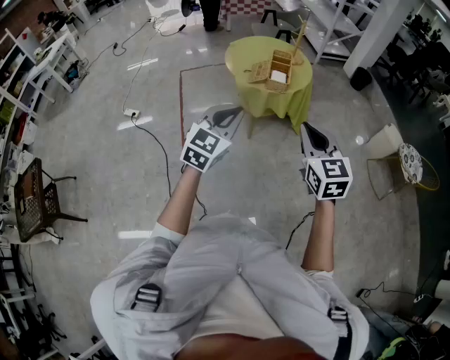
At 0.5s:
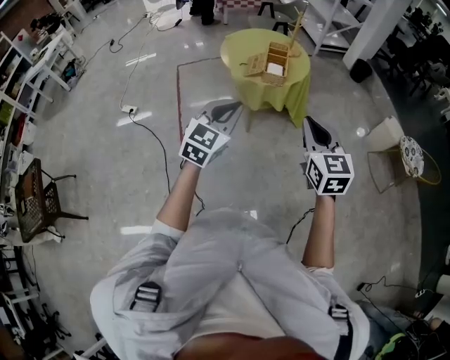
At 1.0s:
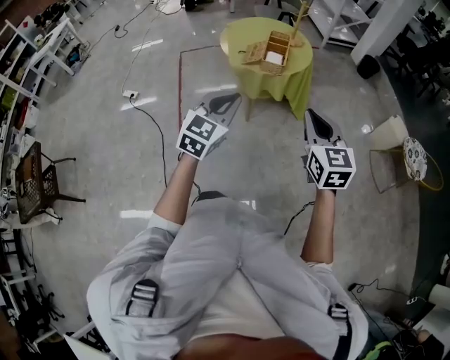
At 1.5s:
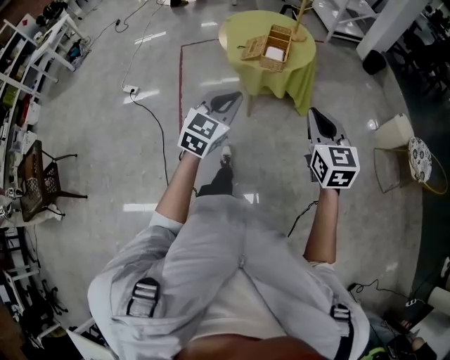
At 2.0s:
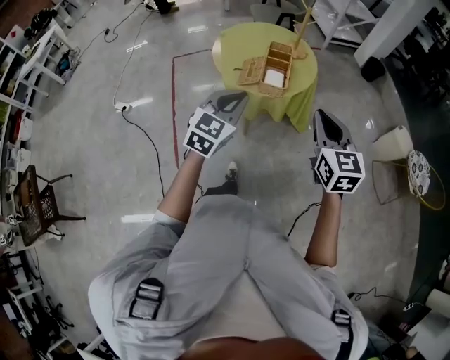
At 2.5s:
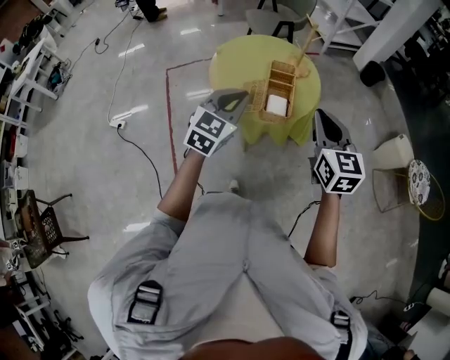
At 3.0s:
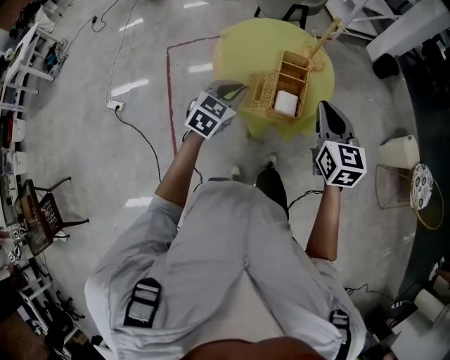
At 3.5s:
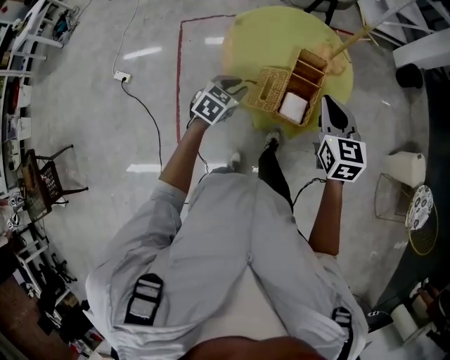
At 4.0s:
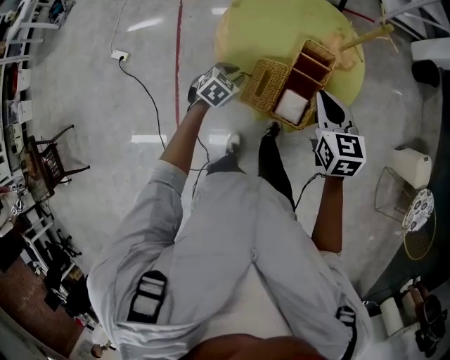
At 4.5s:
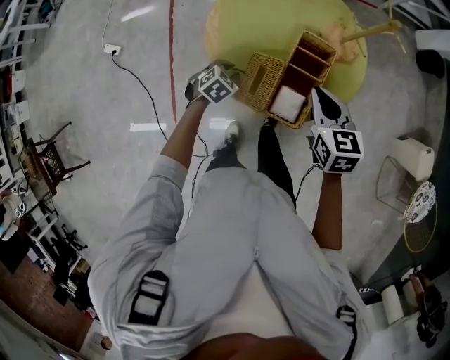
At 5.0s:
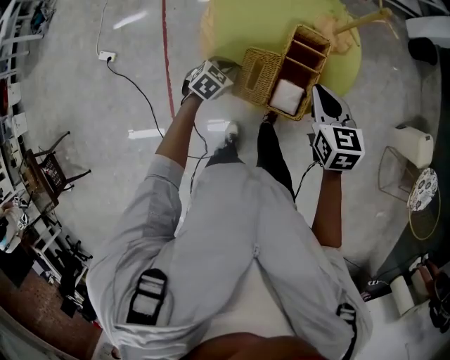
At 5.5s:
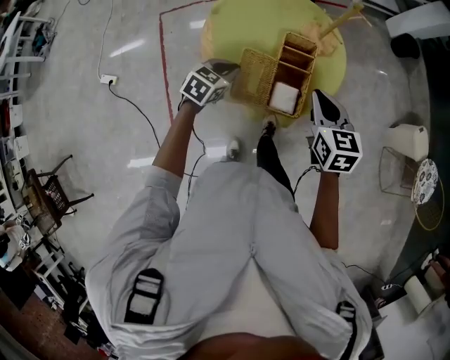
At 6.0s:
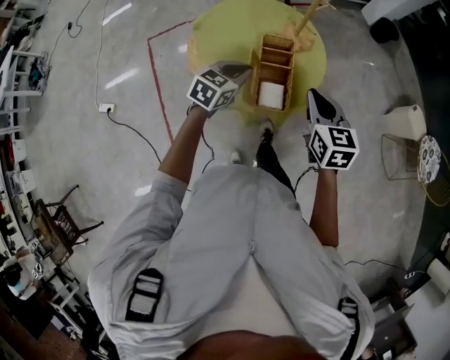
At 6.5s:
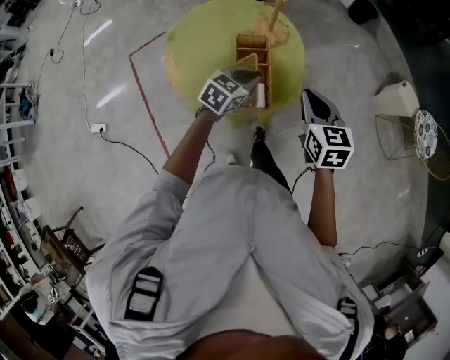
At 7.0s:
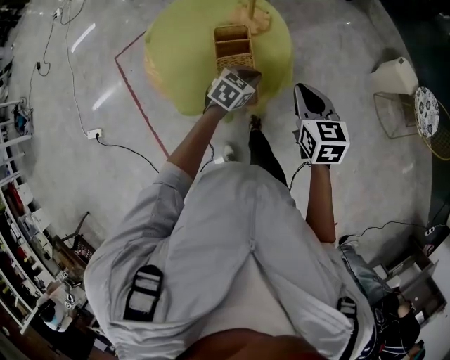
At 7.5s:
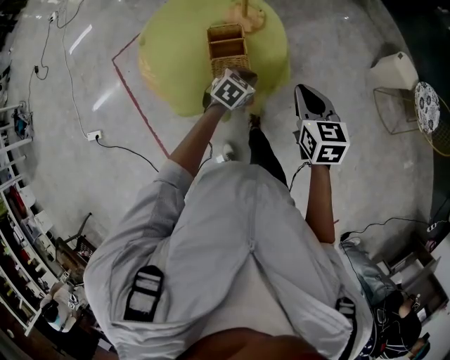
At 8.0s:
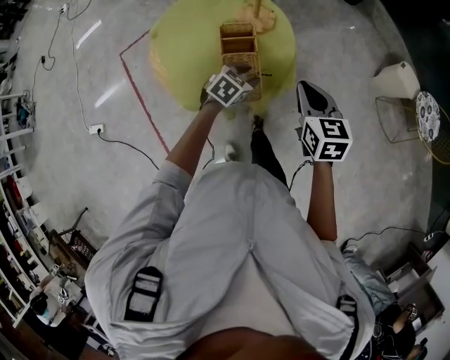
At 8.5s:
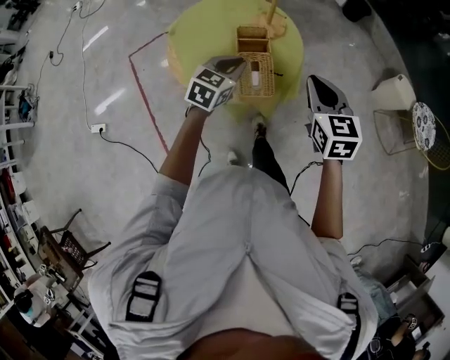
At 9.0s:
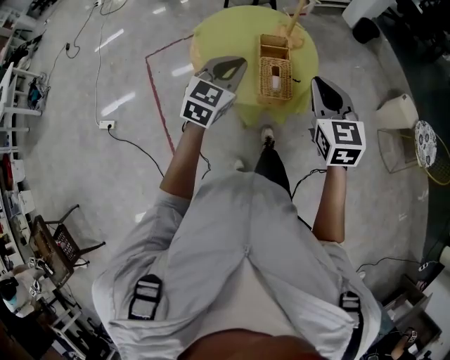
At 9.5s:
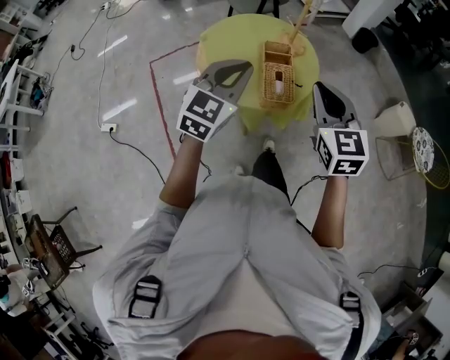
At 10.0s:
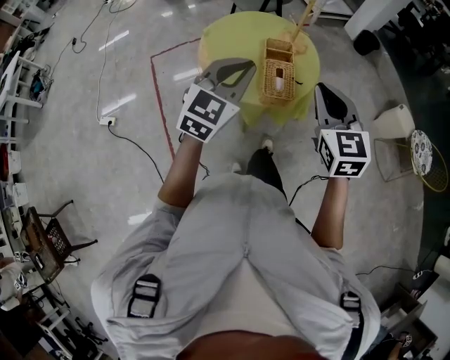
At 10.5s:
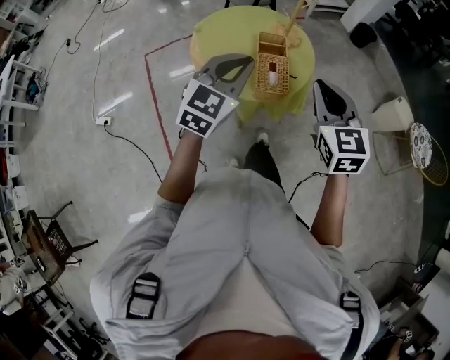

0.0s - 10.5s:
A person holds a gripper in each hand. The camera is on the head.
0.0s - 2.0s: The grippers both shift forward by approximately 25 cm.
2.0s - 4.0s: The two grippers go roughly 50 cm forward and downward. The left gripper points its fingers about 40 degrees further downward. The right gripper turns by about 20 degrees.
4.0s - 6.5s: The right gripper changes place by approximately 15 cm, and swivels some 20 degrees, while the left gripper ends up about 25 cm from where it was, and changes its angle by roughly 30 degrees.
6.5s - 8.5s: The right gripper ends up some 5 cm from where it was. The left gripper reaches roughly 10 cm downward, then returns, and opens and closes again.
8.5s - 10.5s: The left gripper heads upward and backward, covering about 20 cm, and swivels roughly 20 degrees. The right gripper goes about 15 cm backward, upward and to the left.

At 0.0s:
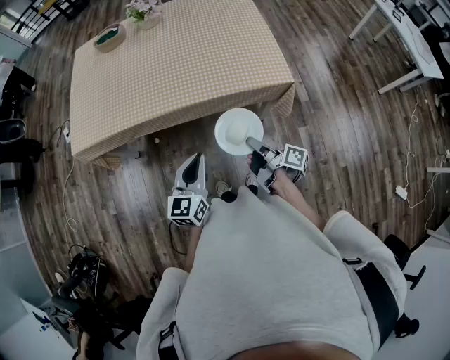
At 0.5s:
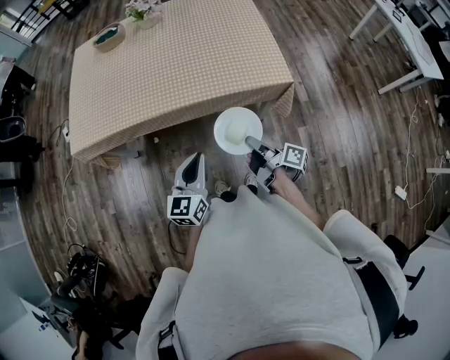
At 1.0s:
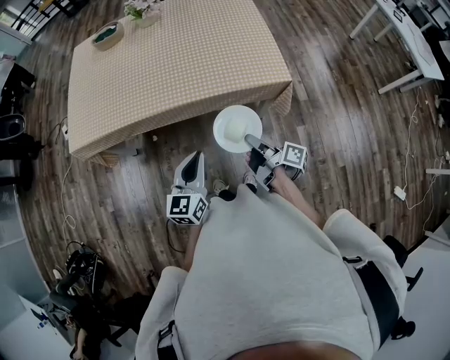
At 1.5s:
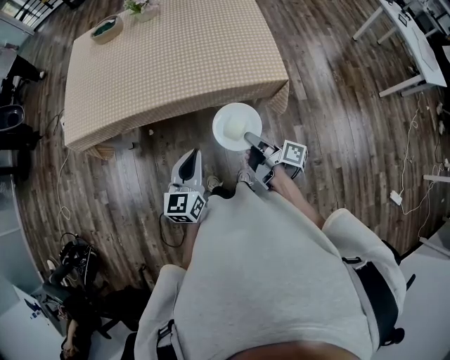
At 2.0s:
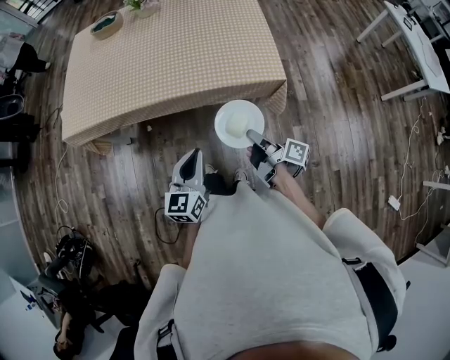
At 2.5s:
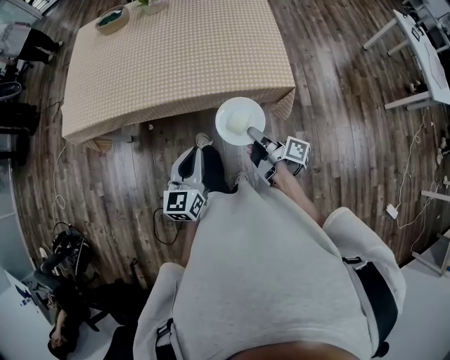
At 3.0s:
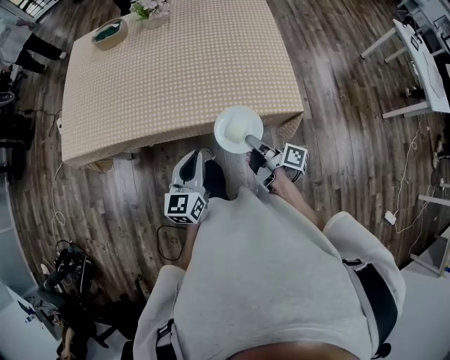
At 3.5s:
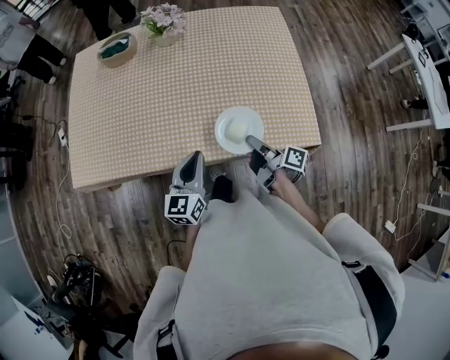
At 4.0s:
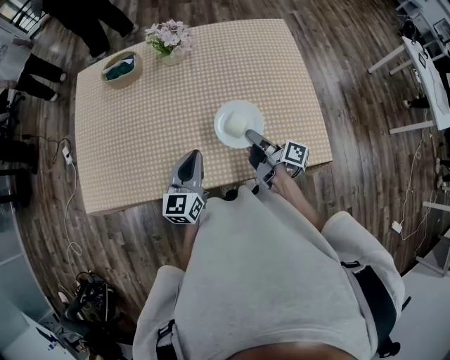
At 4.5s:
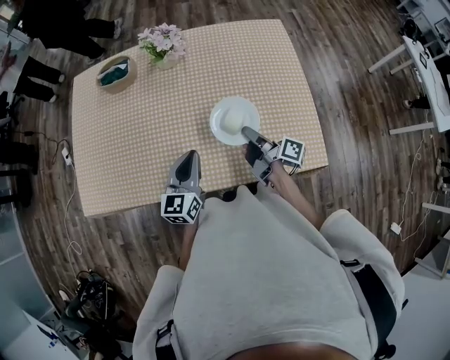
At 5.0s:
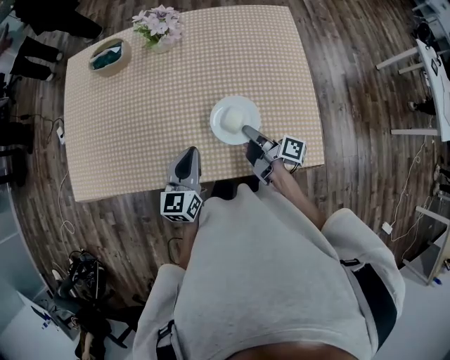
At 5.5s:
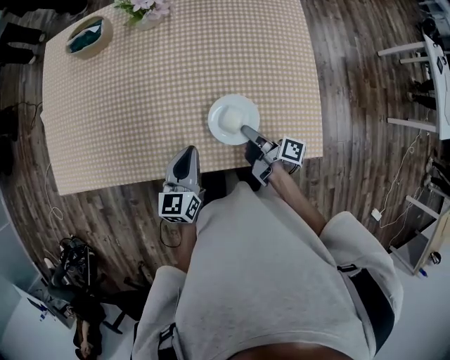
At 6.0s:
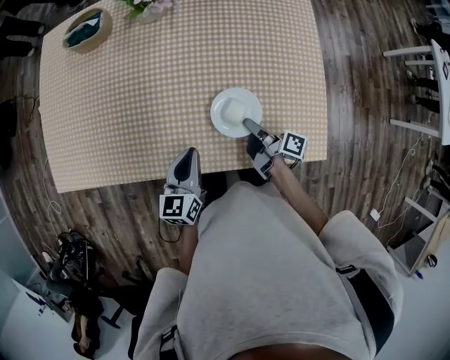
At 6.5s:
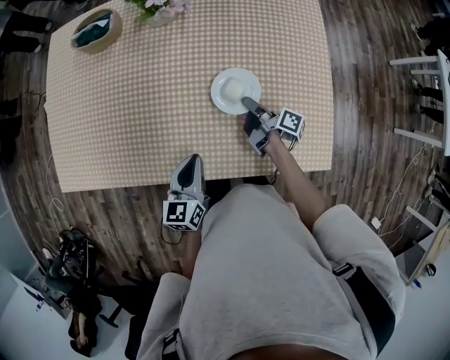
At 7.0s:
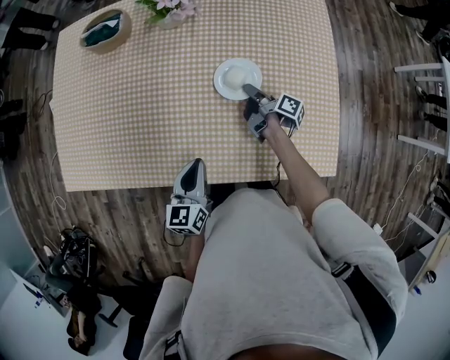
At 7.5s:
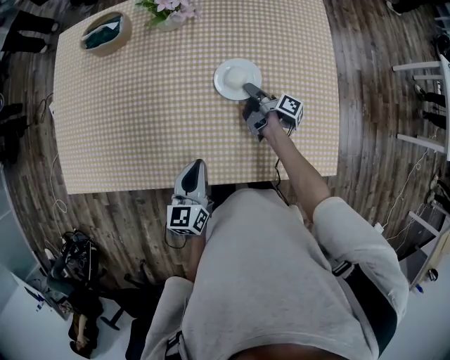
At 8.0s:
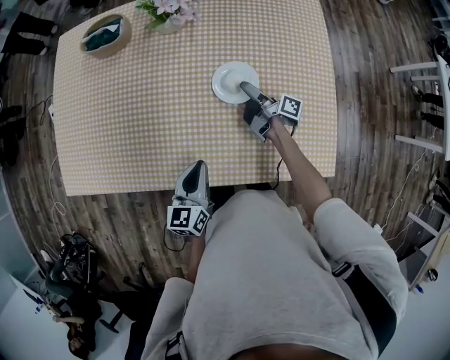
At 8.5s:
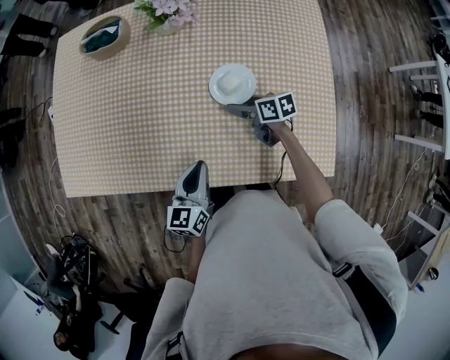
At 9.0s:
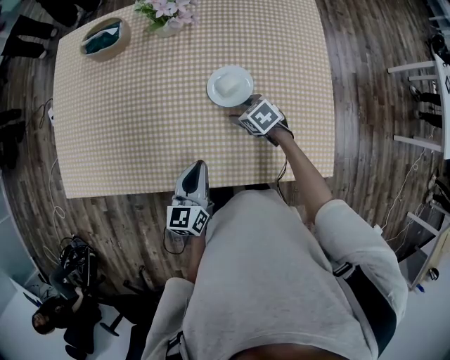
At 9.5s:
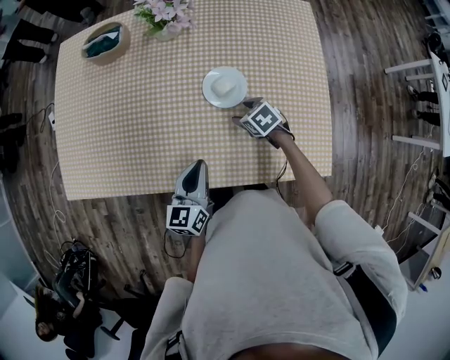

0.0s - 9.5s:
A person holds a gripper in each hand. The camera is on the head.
0.0s - 2.0s: The left gripper ends up roughly 5 cm from where it was.
2.0s - 4.0s: The left gripper ends up approximately 40 cm from where it was.
4.0s - 5.5s: The left gripper heads downward, covering approximately 10 cm.

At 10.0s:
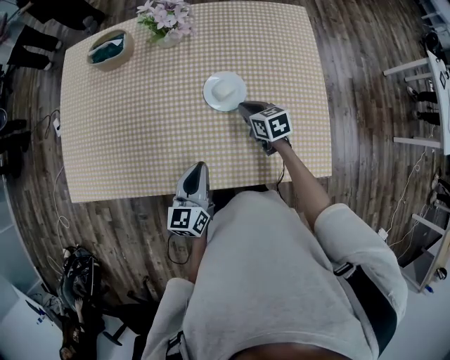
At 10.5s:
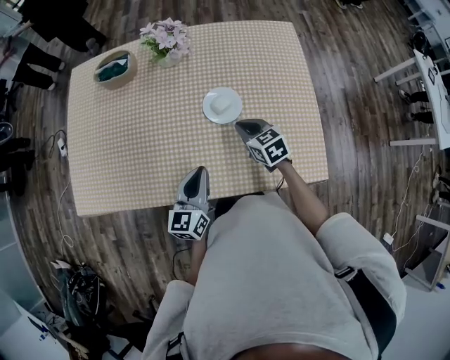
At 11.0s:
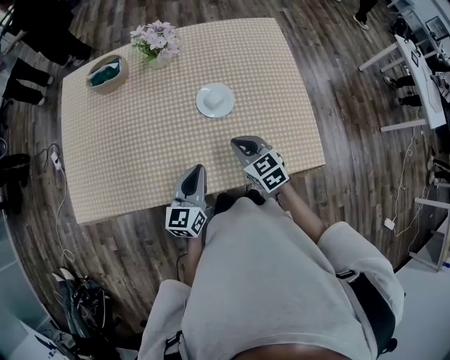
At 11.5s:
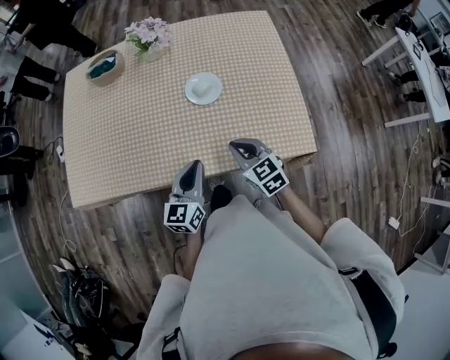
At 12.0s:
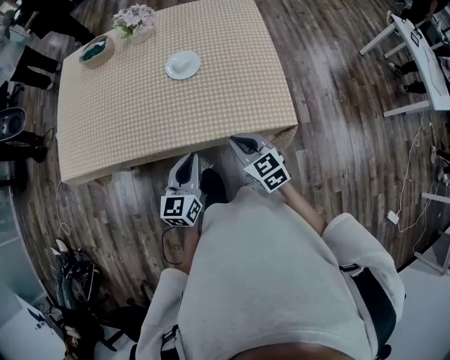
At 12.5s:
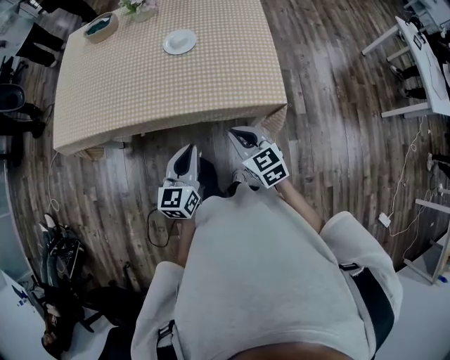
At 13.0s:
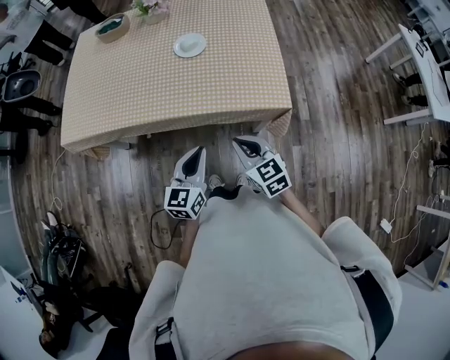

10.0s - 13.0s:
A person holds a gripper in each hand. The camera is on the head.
10.0s - 11.5s: The left gripper moves about 10 cm.
11.5s - 13.0s: The left gripper changes place by some 25 cm.

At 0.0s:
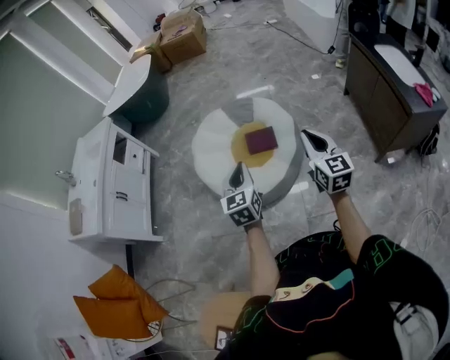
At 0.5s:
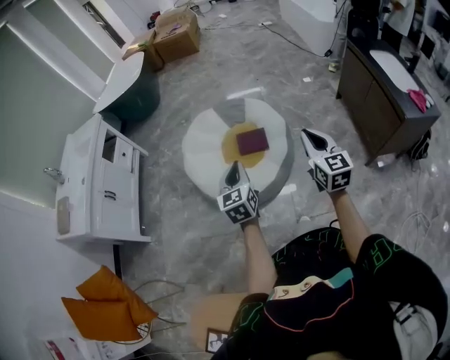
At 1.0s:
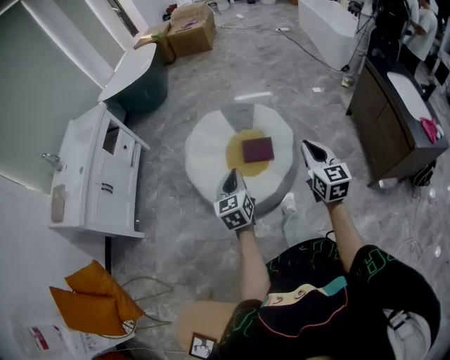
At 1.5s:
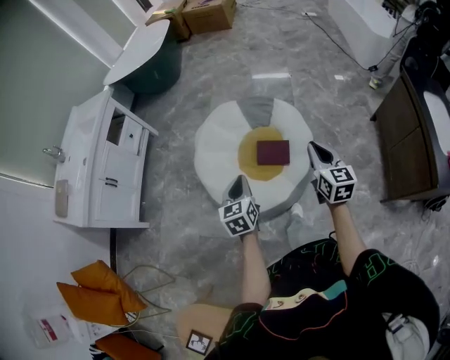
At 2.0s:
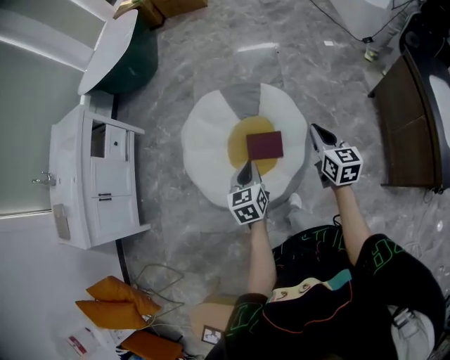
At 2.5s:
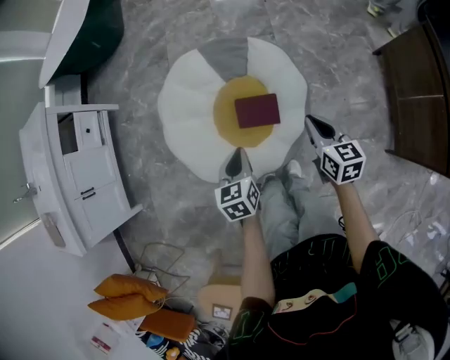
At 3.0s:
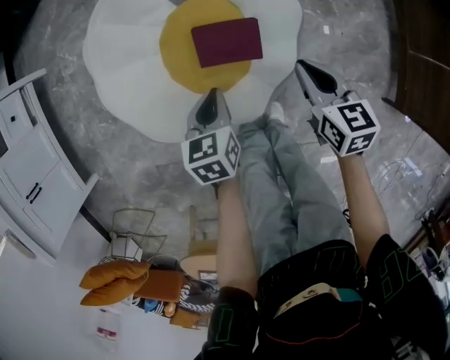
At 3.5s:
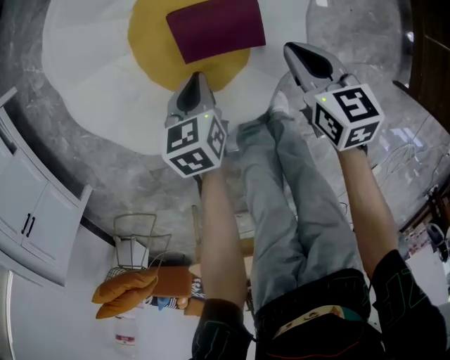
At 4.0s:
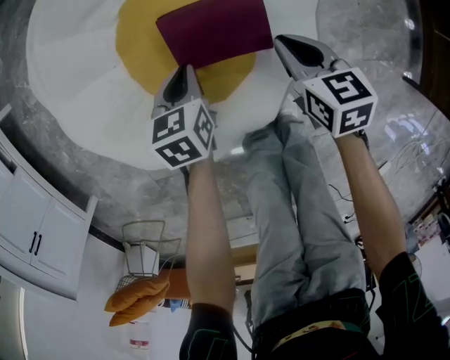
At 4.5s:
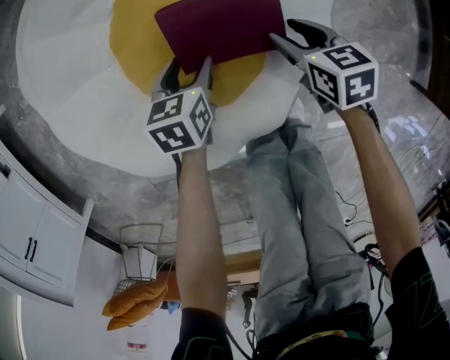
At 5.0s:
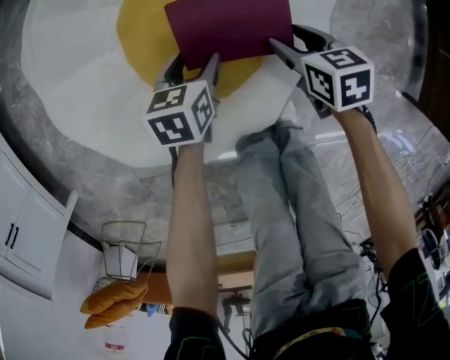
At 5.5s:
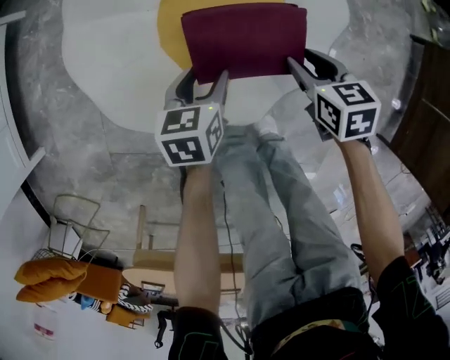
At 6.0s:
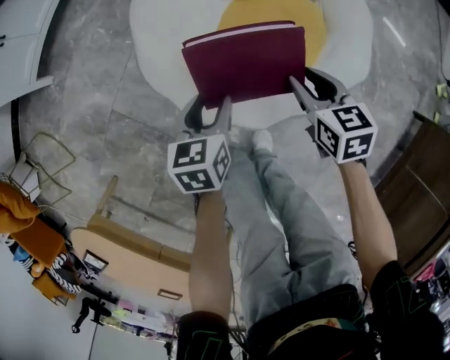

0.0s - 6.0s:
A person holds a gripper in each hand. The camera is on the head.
0.0s - 2.0s: The left gripper is displaced forward and downward by about 30 cm, while the right gripper shifts some 35 cm forward.
2.0s - 4.0s: Both grippers move downward, about 50 cm. The left gripper rotates about 30 degrees. The right gripper swivels about 30 degrees.
4.0s - 6.0s: The right gripper shifts by approximately 15 cm, rotates about 40 degrees, and opens its fingers, while the left gripper ends up some 25 cm from where it was, rotates about 40 degrees, and opens.
